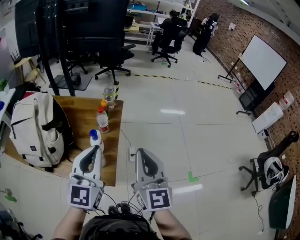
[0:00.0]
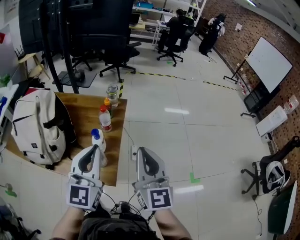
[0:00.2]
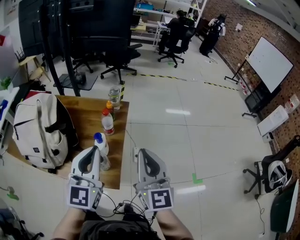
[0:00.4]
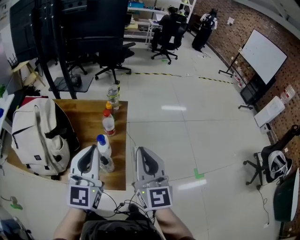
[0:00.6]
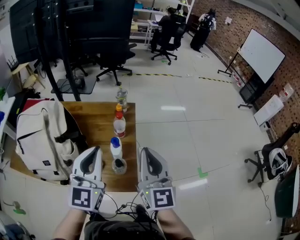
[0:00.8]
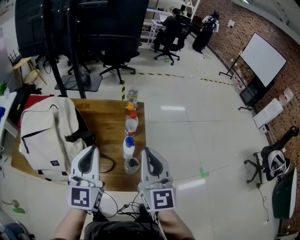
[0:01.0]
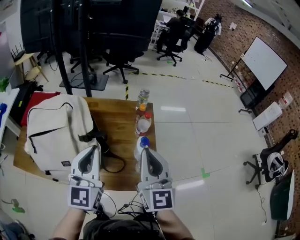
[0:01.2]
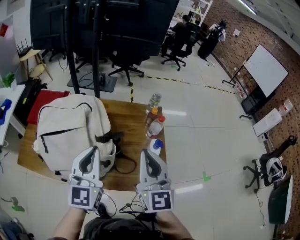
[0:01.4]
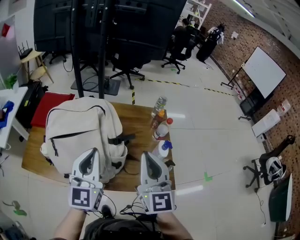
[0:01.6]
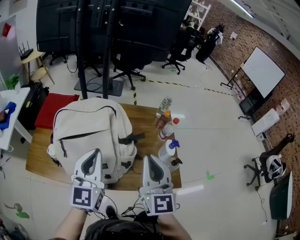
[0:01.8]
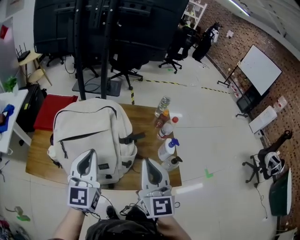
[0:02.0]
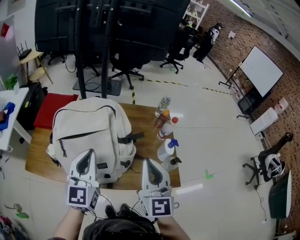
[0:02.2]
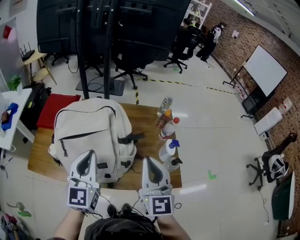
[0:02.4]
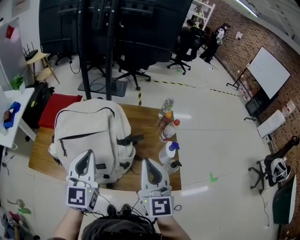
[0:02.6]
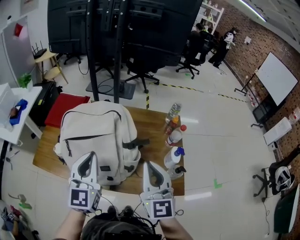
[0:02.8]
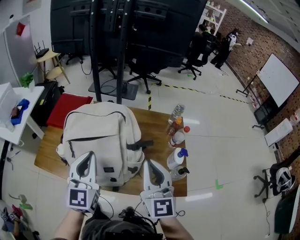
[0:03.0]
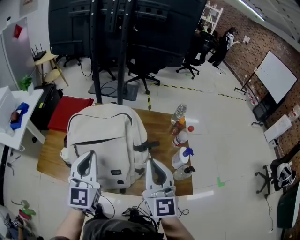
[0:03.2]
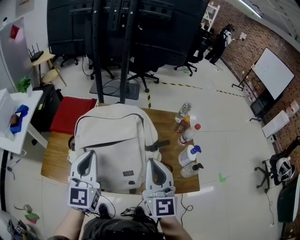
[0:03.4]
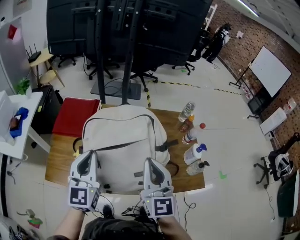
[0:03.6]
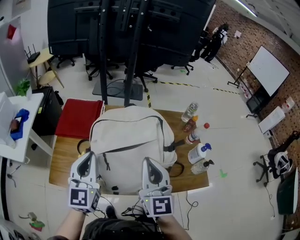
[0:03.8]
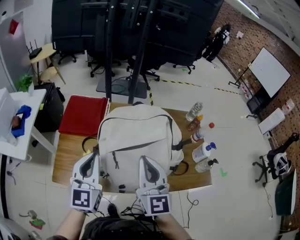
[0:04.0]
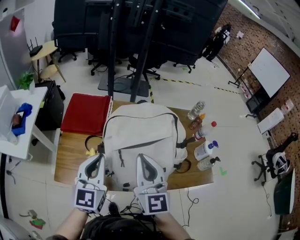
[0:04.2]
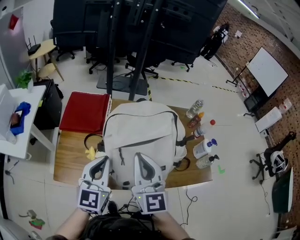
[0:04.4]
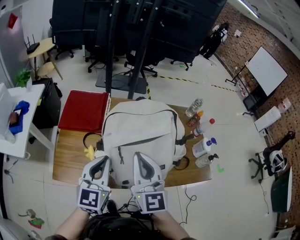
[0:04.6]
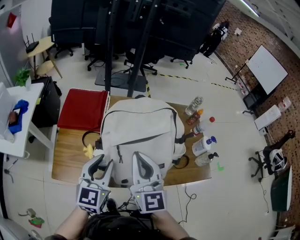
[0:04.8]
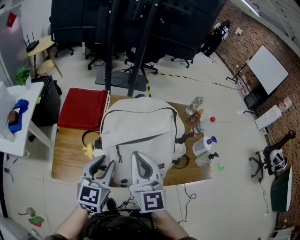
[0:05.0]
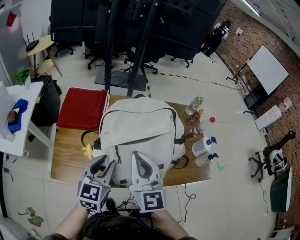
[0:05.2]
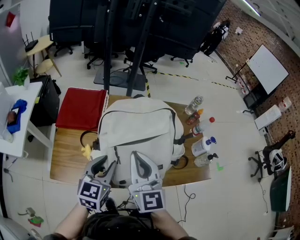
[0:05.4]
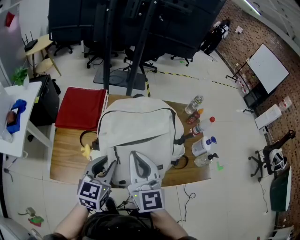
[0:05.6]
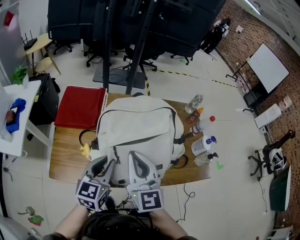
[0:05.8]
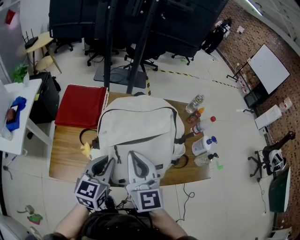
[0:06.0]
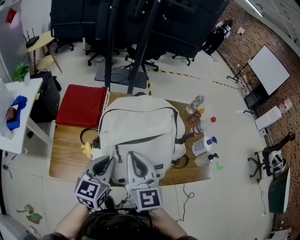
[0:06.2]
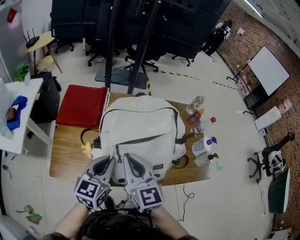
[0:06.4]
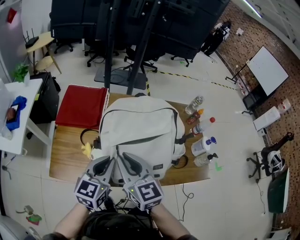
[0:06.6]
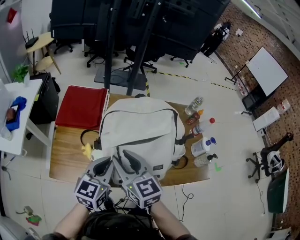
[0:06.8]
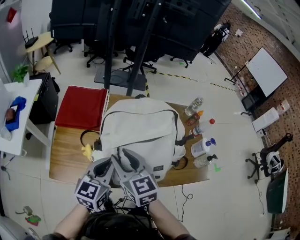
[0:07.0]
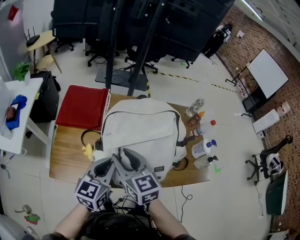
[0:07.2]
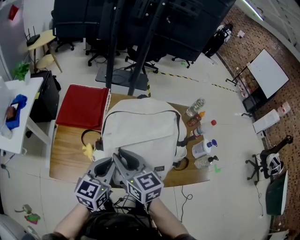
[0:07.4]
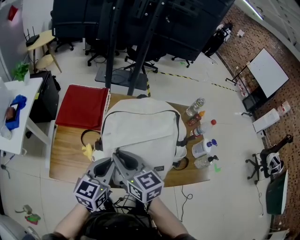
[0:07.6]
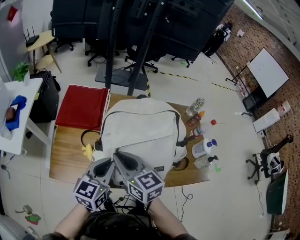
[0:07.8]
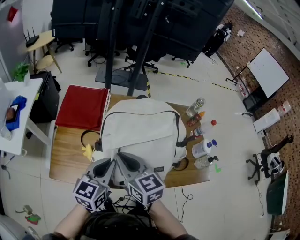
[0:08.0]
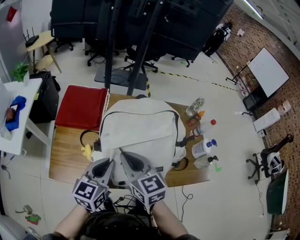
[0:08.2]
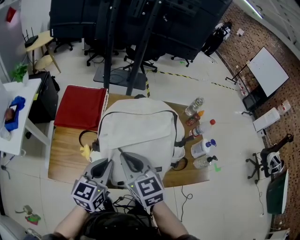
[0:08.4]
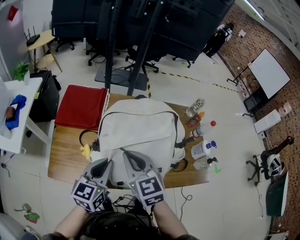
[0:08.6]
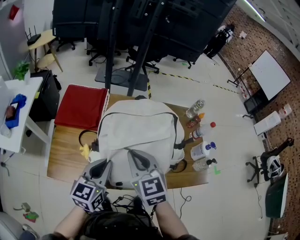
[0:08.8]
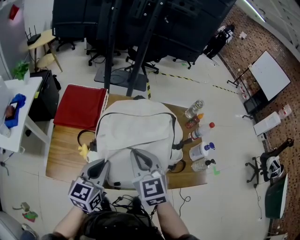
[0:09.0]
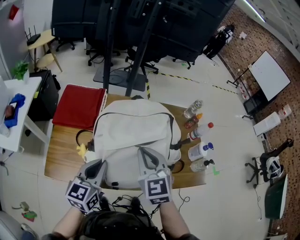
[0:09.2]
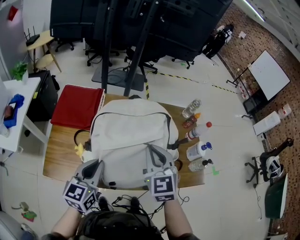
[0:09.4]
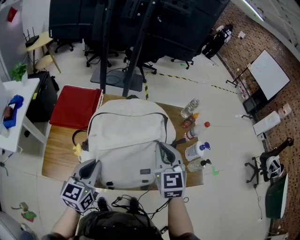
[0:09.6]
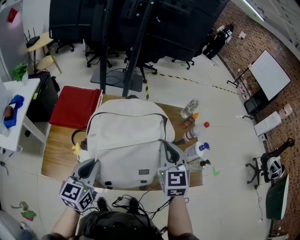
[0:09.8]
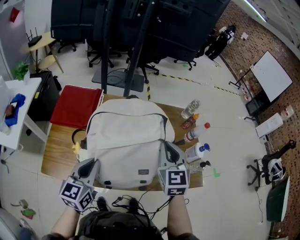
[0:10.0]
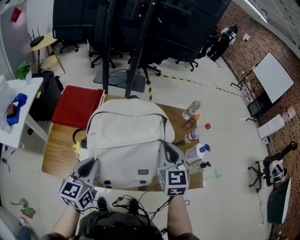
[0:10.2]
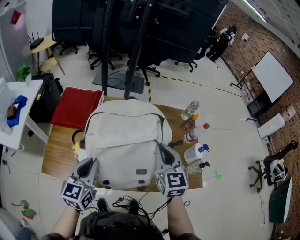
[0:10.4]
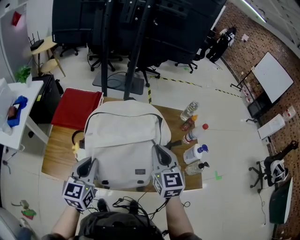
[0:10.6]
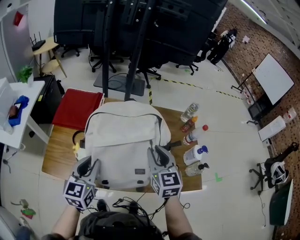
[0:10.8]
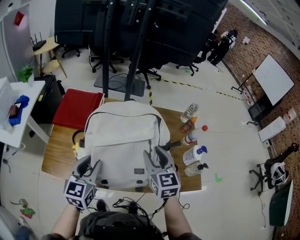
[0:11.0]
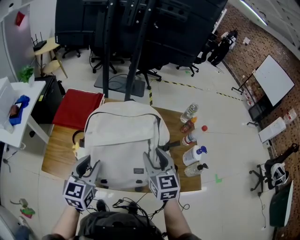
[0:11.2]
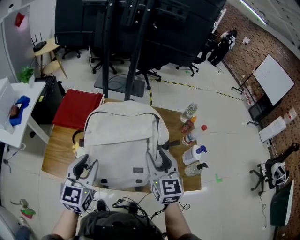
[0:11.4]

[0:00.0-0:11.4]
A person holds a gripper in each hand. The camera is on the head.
0:00.0 to 0:01.4: The grippers both shift to the left by about 40 cm.
0:01.4 to 0:02.8: Both grippers move to the left, some 10 cm.
0:02.8 to 0:04.2: Both grippers move to the left, roughly 30 cm.
0:04.2 to 0:05.6: The left gripper is displaced downward by roughly 10 cm, and opens.
0:05.6 to 0:07.2: The right gripper is displaced to the left and downward by about 10 cm, turns by some 30 degrees, and opens its fingers. Meanwhile the left gripper closes up.
0:07.2 to 0:08.6: The right gripper closes its fingers.
0:08.6 to 0:10.0: The right gripper goes roughly 20 cm to the right, and changes its angle by about 20 degrees.
0:10.0 to 0:11.4: The left gripper ends up roughly 5 cm from where it was, and opens its fingers, while the right gripper opens up.

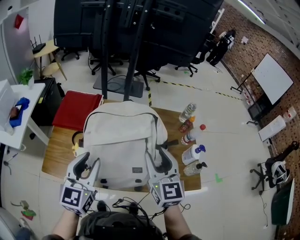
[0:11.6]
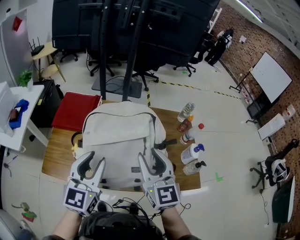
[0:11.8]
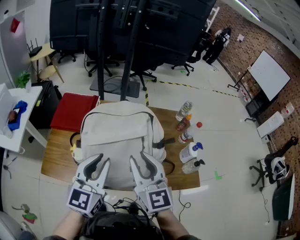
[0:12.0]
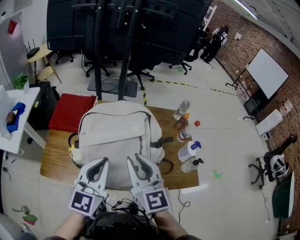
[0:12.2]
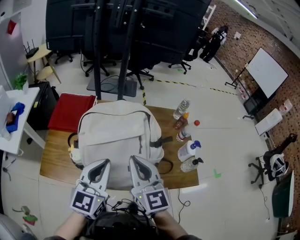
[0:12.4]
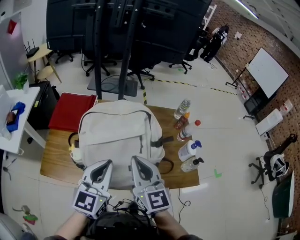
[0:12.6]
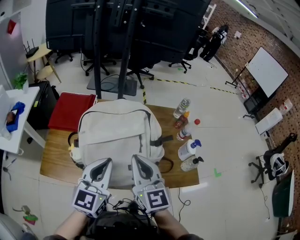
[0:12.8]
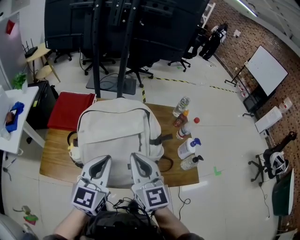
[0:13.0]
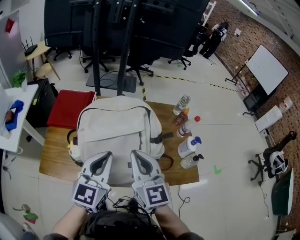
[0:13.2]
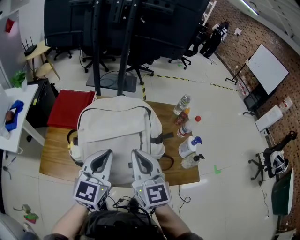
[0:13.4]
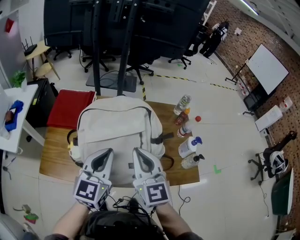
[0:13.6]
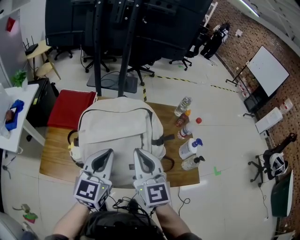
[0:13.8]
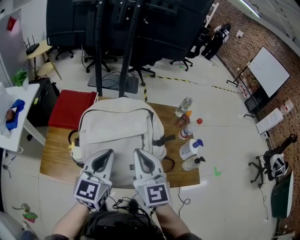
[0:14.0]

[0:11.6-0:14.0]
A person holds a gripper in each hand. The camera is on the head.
0:11.6 to 0:12.8: The left gripper moves to the right, some 10 cm, and closes its fingers. The right gripper moves about 5 cm, and closes.
0:12.8 to 0:14.0: The grippers make only small movements.

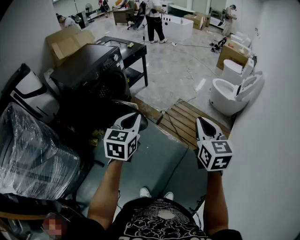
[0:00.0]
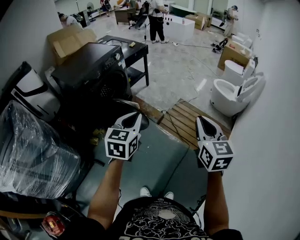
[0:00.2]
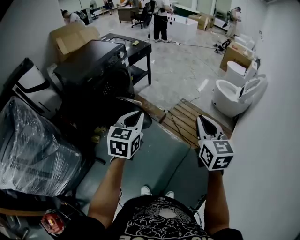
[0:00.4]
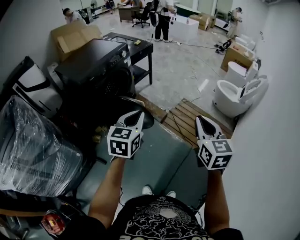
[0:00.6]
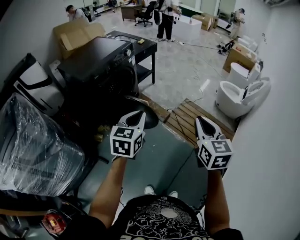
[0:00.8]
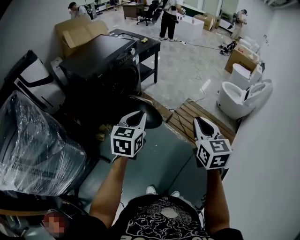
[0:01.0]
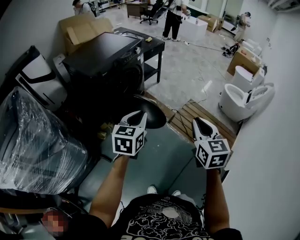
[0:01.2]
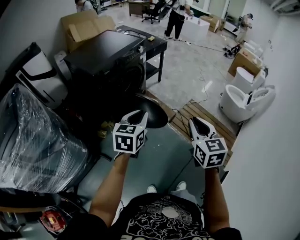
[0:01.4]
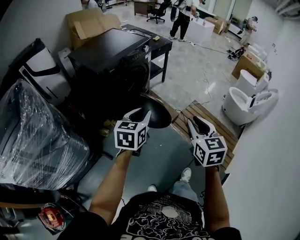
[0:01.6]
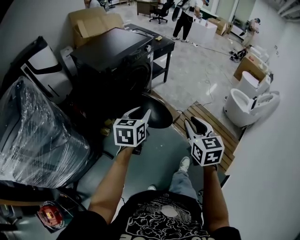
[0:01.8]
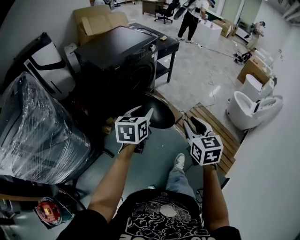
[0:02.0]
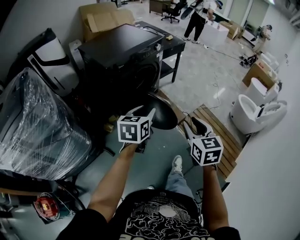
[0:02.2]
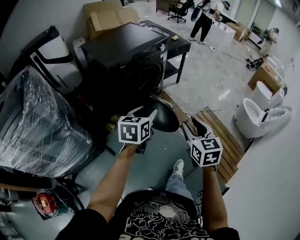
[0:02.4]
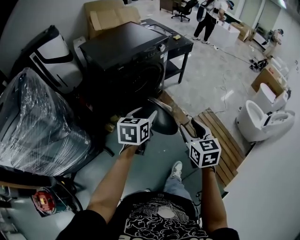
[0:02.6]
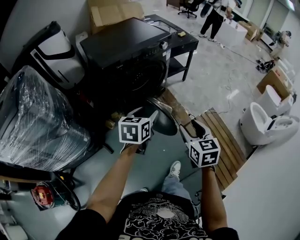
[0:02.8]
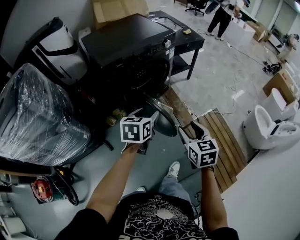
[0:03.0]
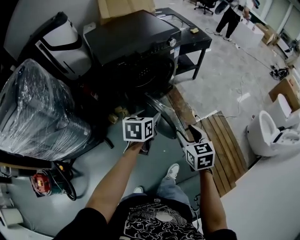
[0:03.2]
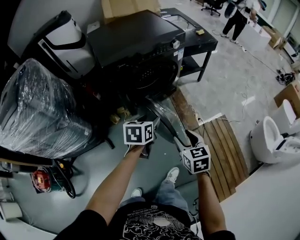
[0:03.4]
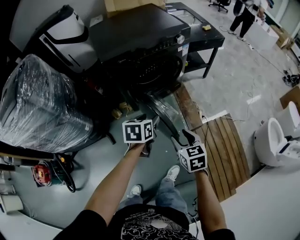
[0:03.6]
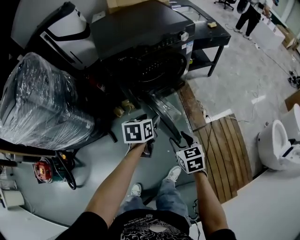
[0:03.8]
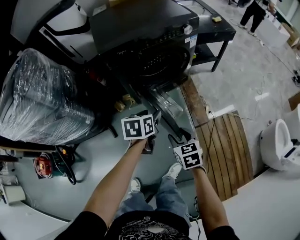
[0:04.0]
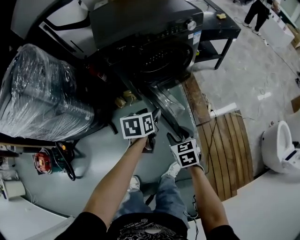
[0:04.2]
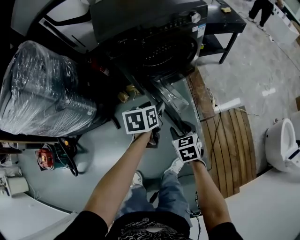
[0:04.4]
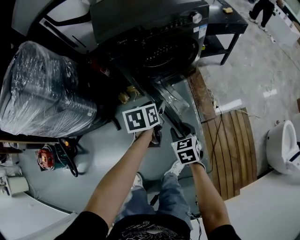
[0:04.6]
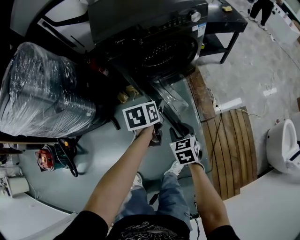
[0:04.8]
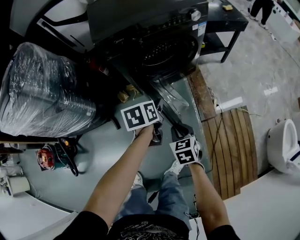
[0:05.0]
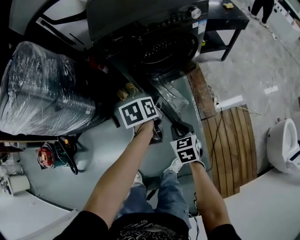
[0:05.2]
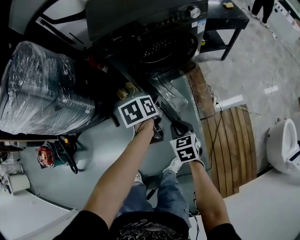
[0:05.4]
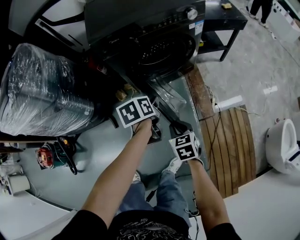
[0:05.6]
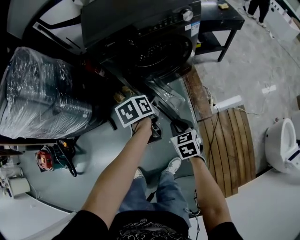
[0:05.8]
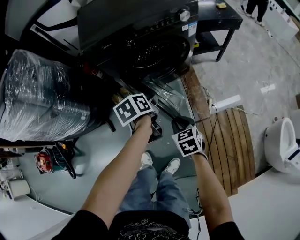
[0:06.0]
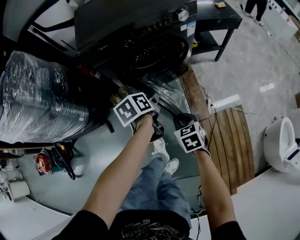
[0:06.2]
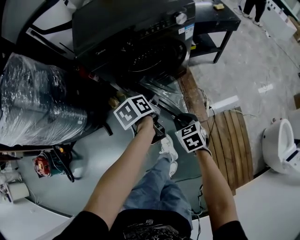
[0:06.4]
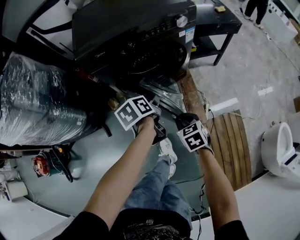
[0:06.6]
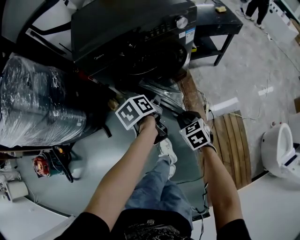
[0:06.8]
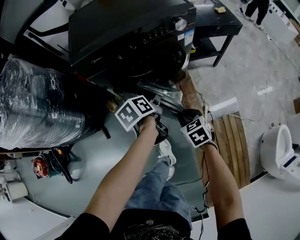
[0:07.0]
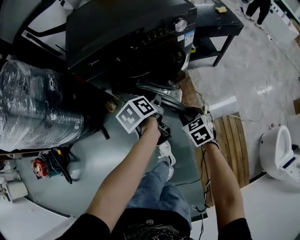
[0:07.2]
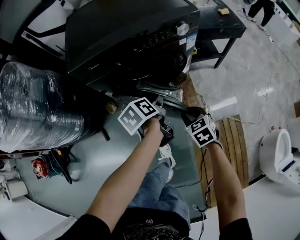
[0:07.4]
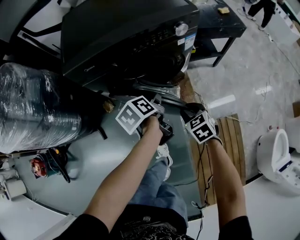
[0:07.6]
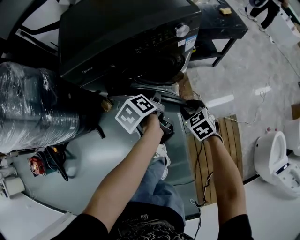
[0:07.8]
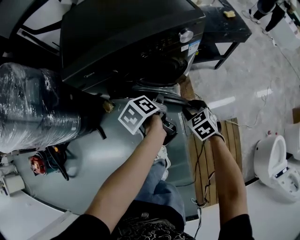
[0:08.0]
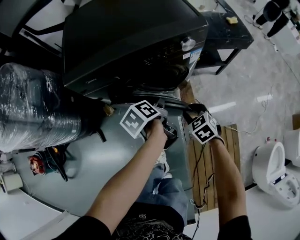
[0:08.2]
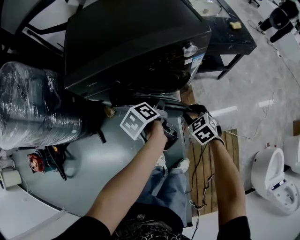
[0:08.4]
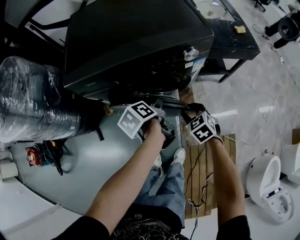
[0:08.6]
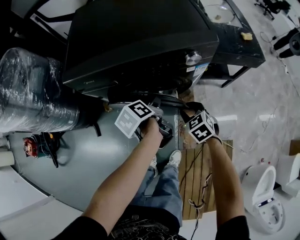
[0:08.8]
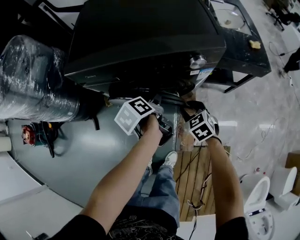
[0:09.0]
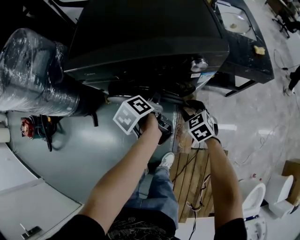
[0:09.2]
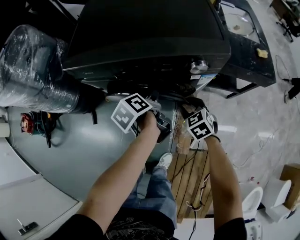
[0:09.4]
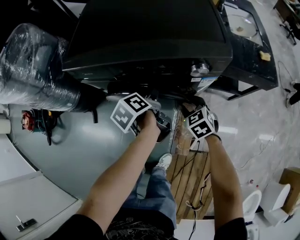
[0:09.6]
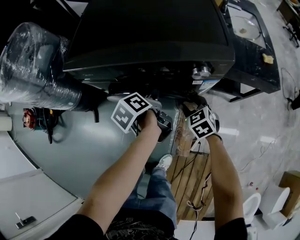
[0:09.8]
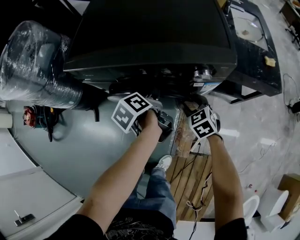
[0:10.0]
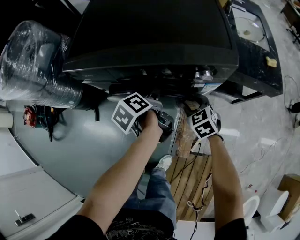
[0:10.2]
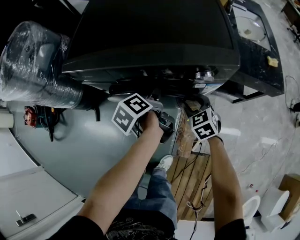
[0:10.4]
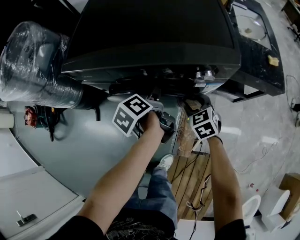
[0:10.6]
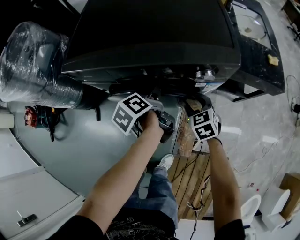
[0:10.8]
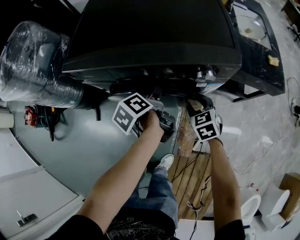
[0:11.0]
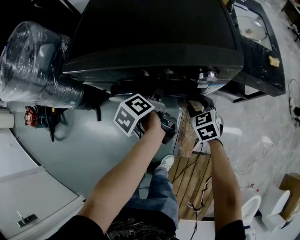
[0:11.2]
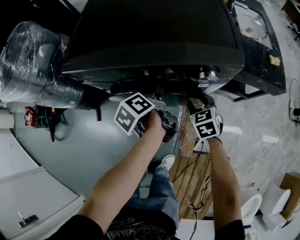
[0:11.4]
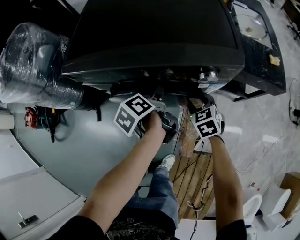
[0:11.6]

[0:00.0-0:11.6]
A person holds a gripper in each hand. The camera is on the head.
0:00.0 to 0:01.4: The two grippers go roughly 15 cm to the left.
0:01.4 to 0:02.8: The two grippers go about 15 cm forward and downward. The right gripper rotates roughly 20 degrees, and opens its fingers. Meanwhile the left gripper opens up.
0:02.8 to 0:04.4: Both grippers travel together downward and forward, roughly 25 cm. The right gripper rotates some 30 degrees. The left gripper changes its angle by about 30 degrees.
0:04.4 to 0:05.8: The left gripper rotates about 20 degrees. Meanwhile the right gripper closes.
0:05.8 to 0:07.2: The left gripper goes approximately 10 cm forward and to the right. Meanwhile the right gripper heads forward and to the right, covering approximately 15 cm.
0:07.2 to 0:08.8: The right gripper moves forward and to the right, some 20 cm, and rotates about 20 degrees. Meanwhile the left gripper goes approximately 10 cm forward, and changes its angle by some 20 degrees.
0:08.8 to 0:10.2: The right gripper travels forward by about 10 cm. The left gripper shifts about 5 cm forward.
0:10.2 to 0:11.6: The grippers stay close to where they were, moving slightly.
